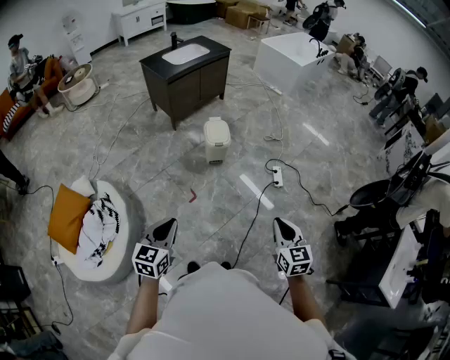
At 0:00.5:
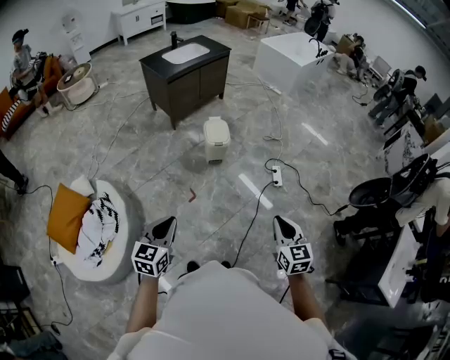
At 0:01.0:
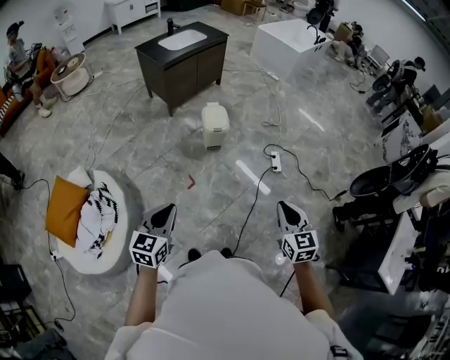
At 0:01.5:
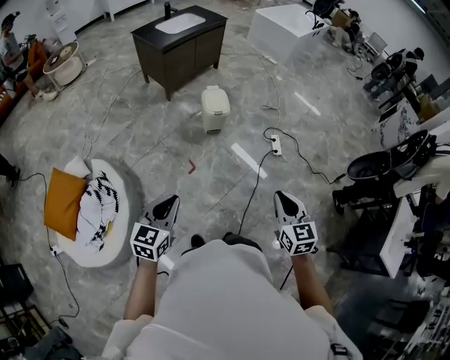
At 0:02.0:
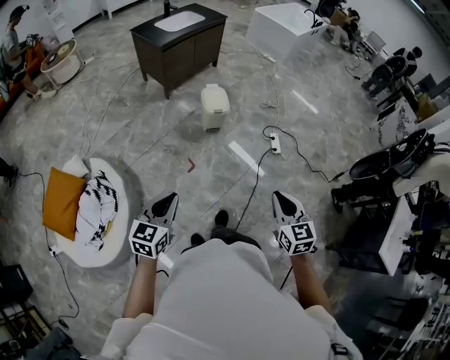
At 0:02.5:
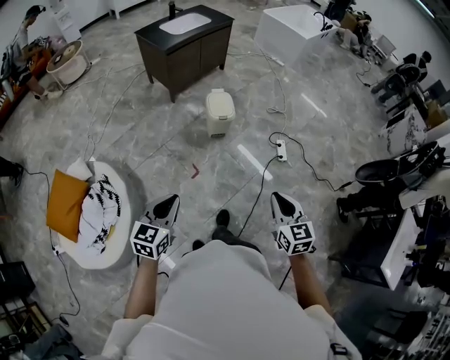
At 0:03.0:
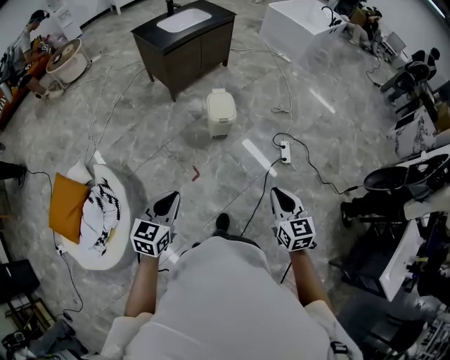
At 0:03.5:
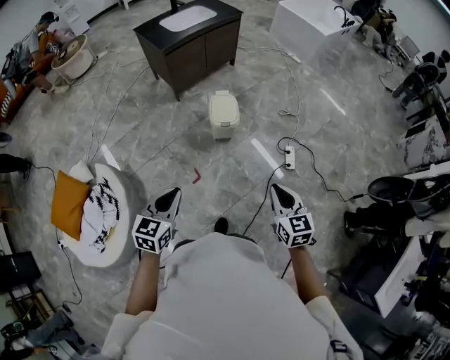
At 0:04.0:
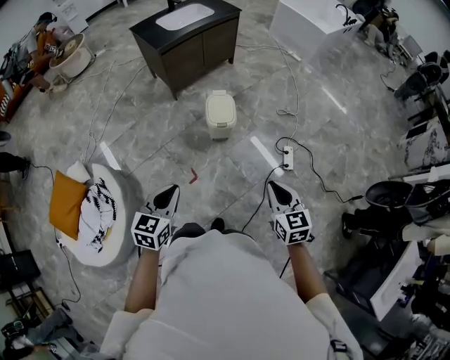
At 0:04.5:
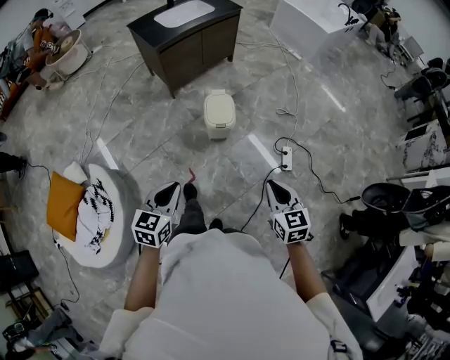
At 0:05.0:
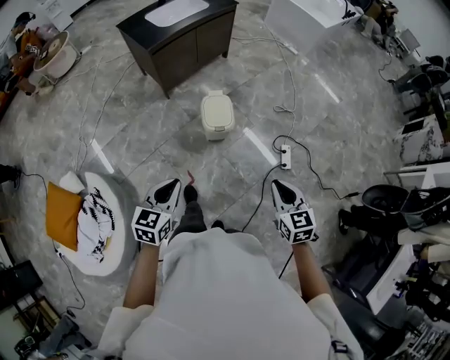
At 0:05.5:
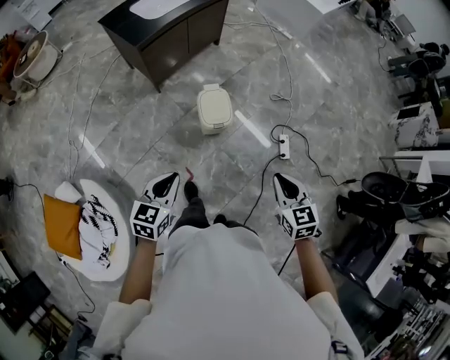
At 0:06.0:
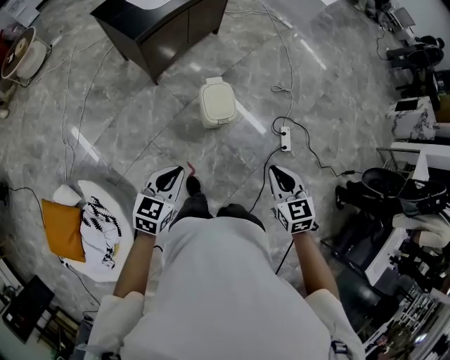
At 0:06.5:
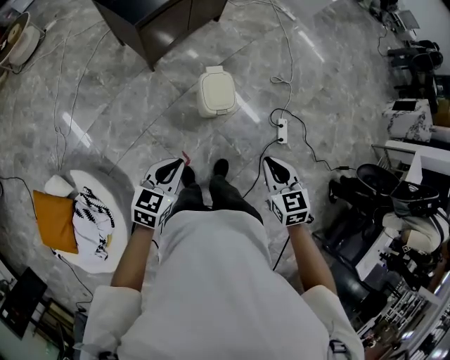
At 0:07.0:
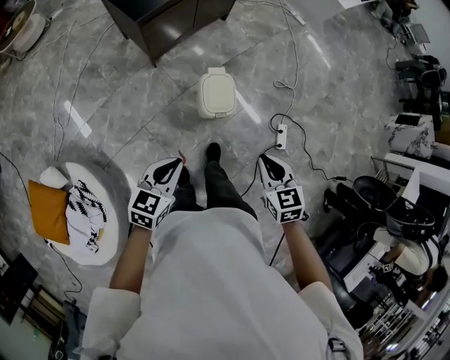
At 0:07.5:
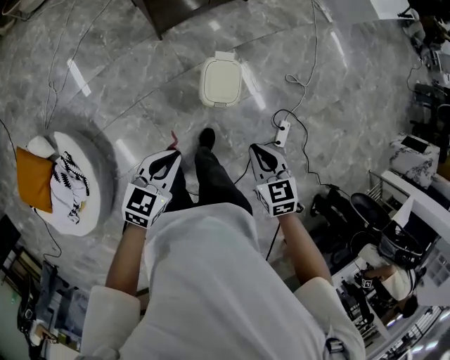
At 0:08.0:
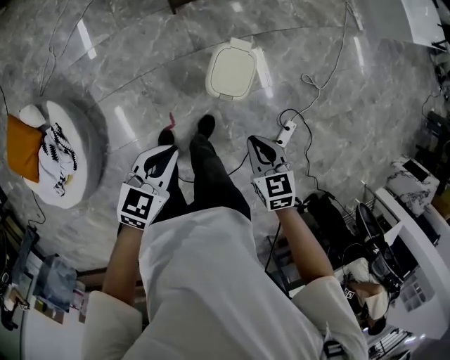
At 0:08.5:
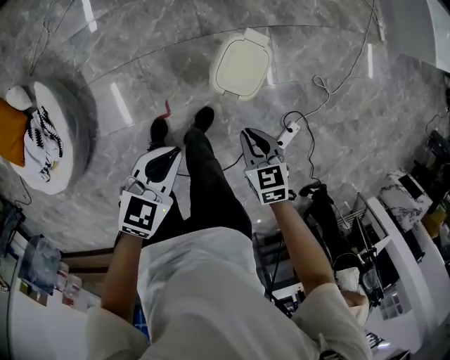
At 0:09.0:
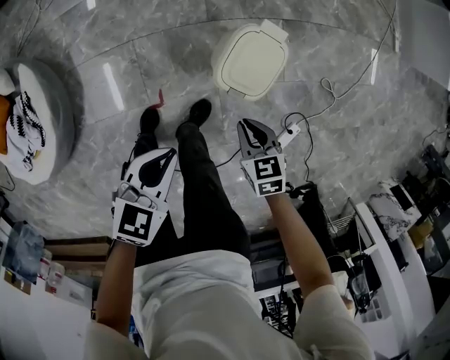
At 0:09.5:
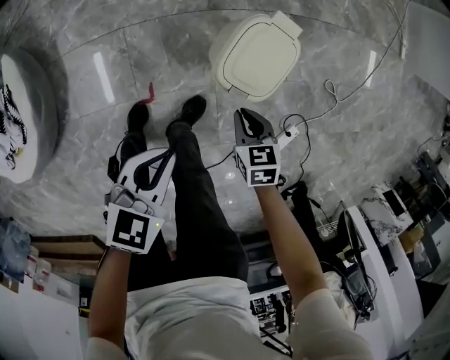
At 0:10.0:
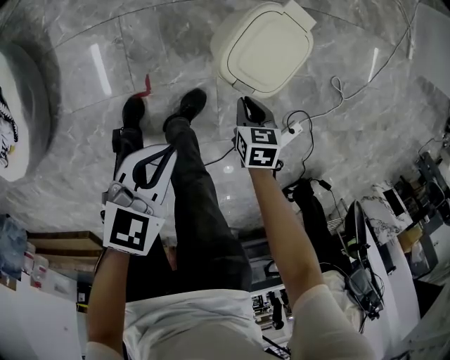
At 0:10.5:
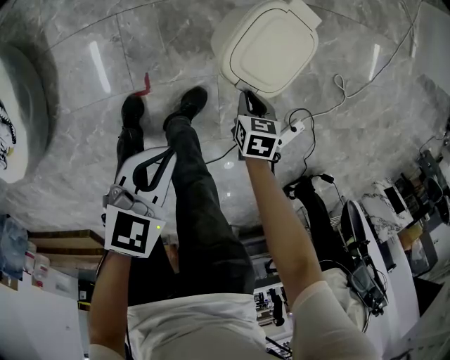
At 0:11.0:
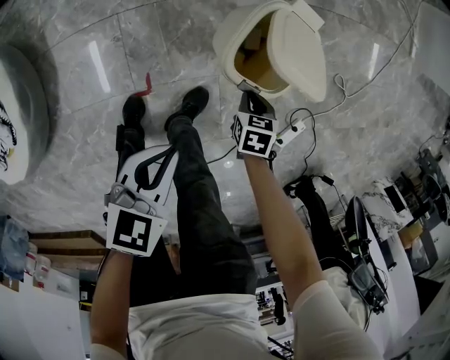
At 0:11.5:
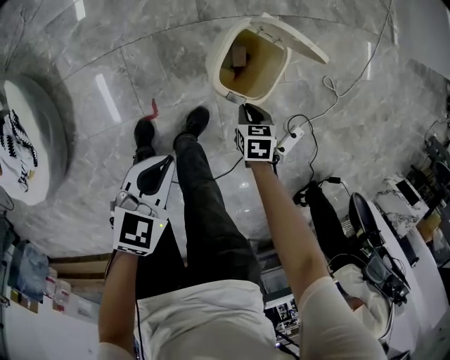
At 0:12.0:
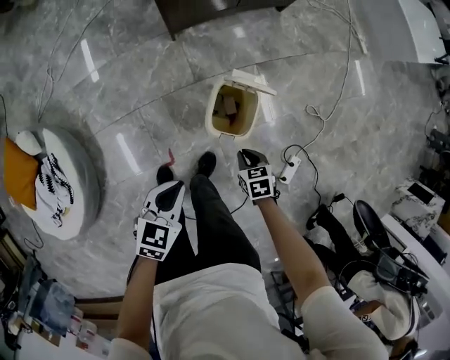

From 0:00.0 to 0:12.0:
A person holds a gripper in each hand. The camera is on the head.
From 0:00.0 to 0:02.0: Both grippers travel together to the left, roughly 5 cm.
From 0:02.0 to 0:04.0: The right gripper shifts roughly 25 cm forward. Meanwhile the left gripper heads forward and to the right, covering some 25 cm.
From 0:04.0 to 0:06.0: The grippers both shift forward and to the left by some 25 cm.
From 0:06.0 to 0:08.0: The left gripper changes place by some 15 cm. Meanwhile the right gripper shifts some 20 cm downward, and changes its angle by approximately 30 degrees.
From 0:08.0 to 0:10.0: The right gripper heads downward, covering some 35 cm, while the left gripper heads downward, covering some 25 cm.
From 0:10.0 to 0:12.0: The two grippers go about 10 cm upward.

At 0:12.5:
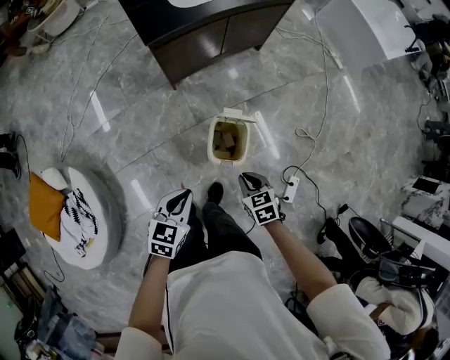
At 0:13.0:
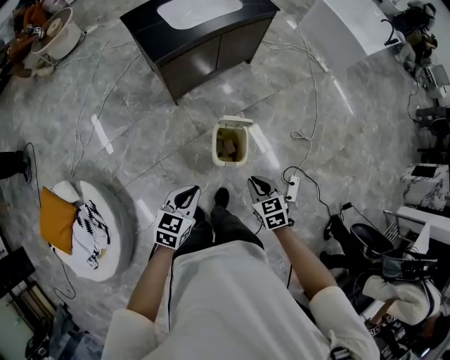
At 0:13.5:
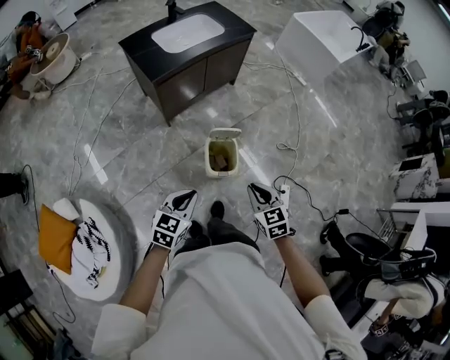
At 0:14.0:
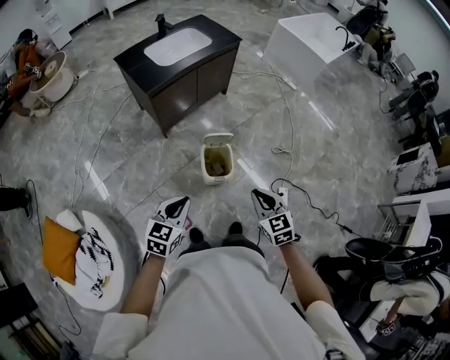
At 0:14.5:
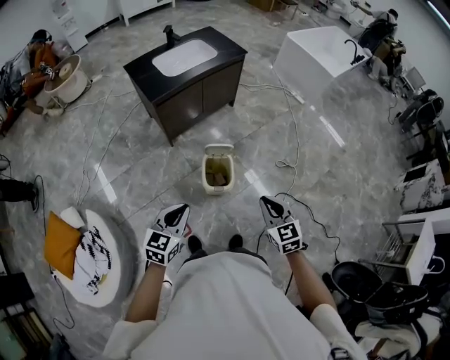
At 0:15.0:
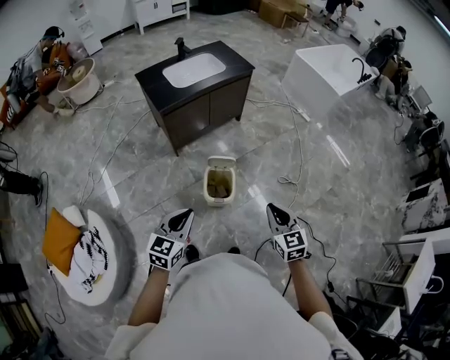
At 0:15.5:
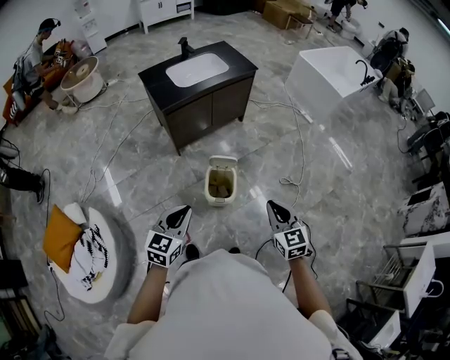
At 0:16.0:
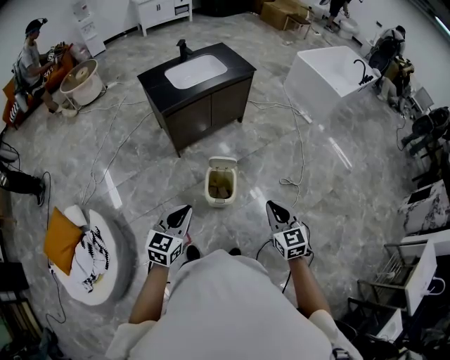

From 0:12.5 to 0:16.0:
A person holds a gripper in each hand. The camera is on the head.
From 0:12.5 to 0:14.5: The right gripper is displaced upward by about 25 cm, and swivels approximately 30 degrees, while the left gripper goes about 20 cm upward and backward.
From 0:14.5 to 0:16.0: There are only small adjustments of the grippers.

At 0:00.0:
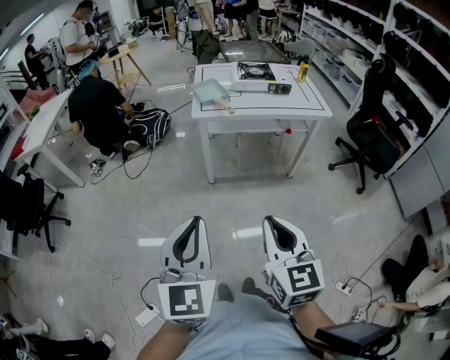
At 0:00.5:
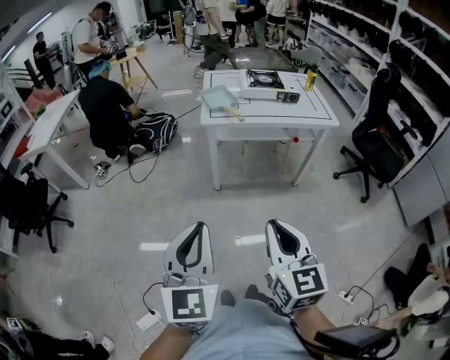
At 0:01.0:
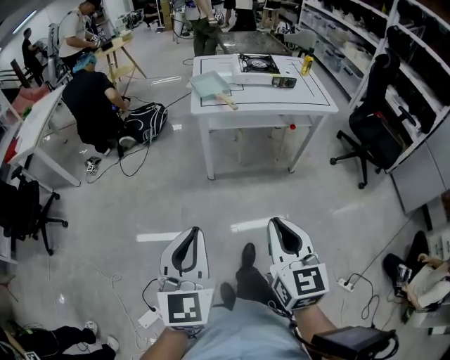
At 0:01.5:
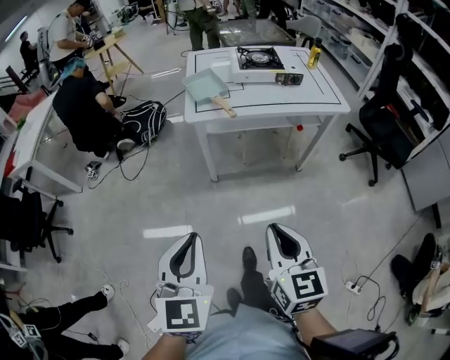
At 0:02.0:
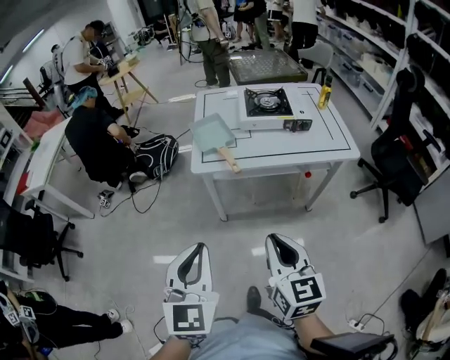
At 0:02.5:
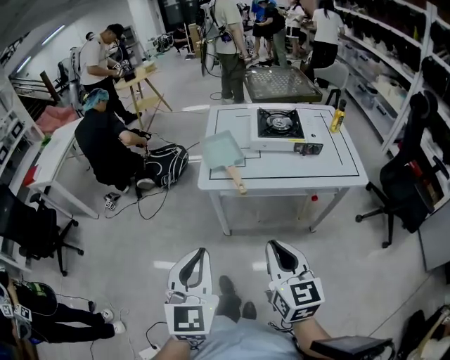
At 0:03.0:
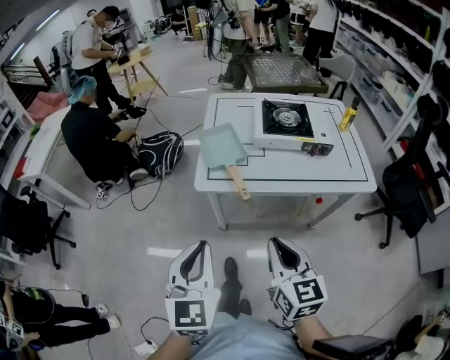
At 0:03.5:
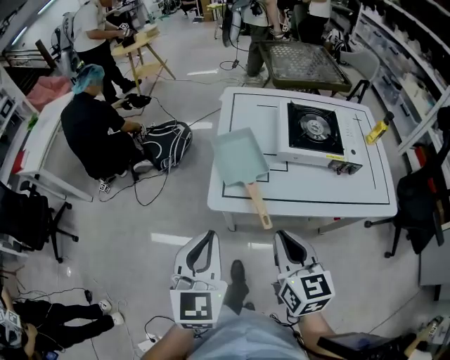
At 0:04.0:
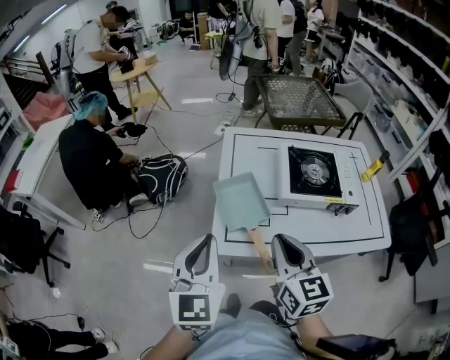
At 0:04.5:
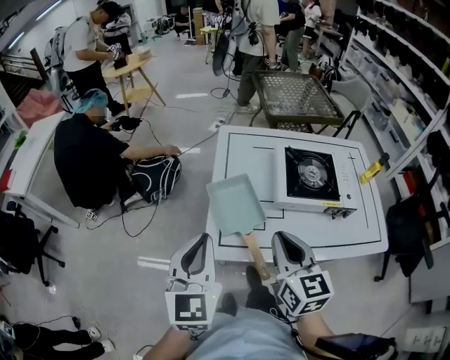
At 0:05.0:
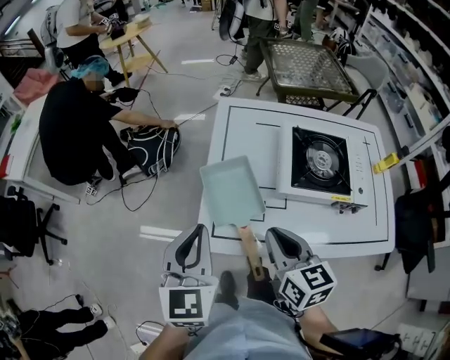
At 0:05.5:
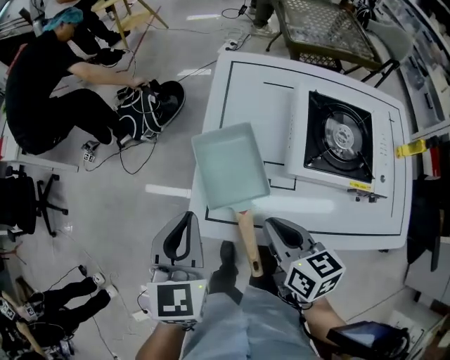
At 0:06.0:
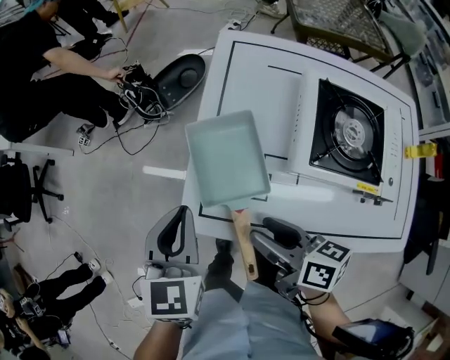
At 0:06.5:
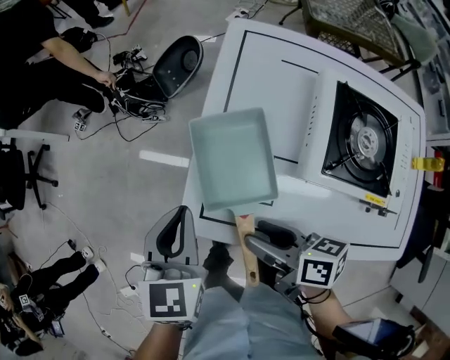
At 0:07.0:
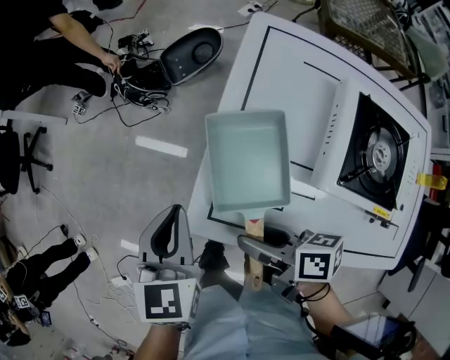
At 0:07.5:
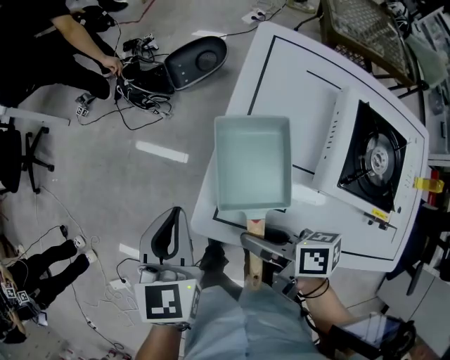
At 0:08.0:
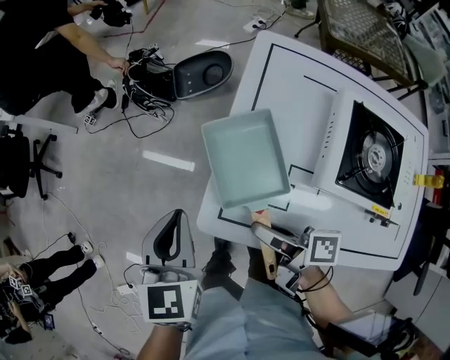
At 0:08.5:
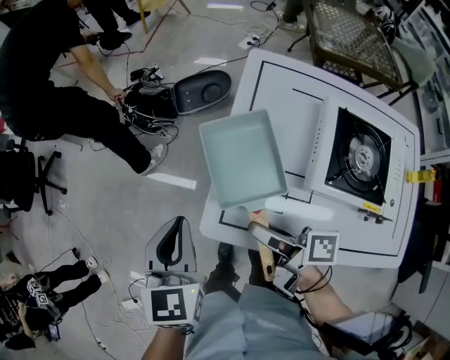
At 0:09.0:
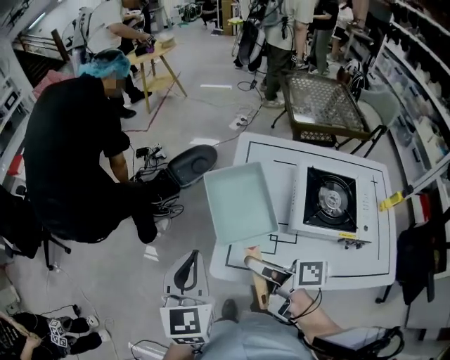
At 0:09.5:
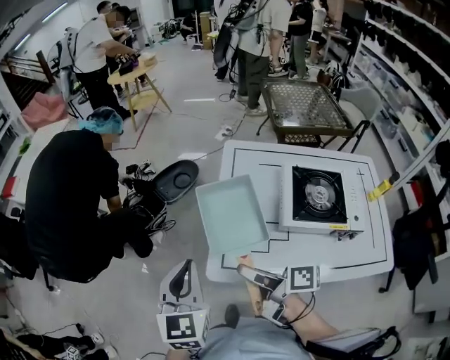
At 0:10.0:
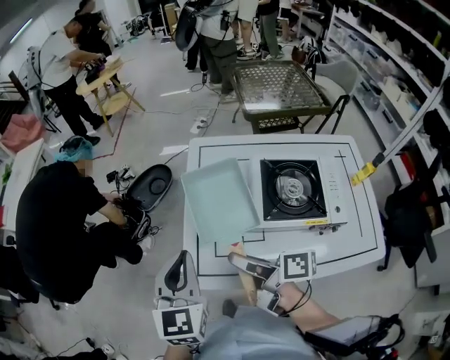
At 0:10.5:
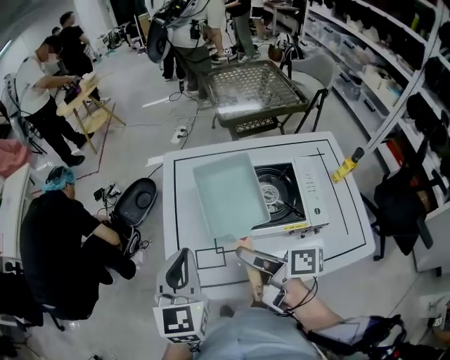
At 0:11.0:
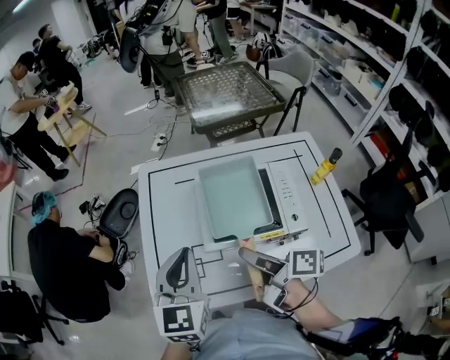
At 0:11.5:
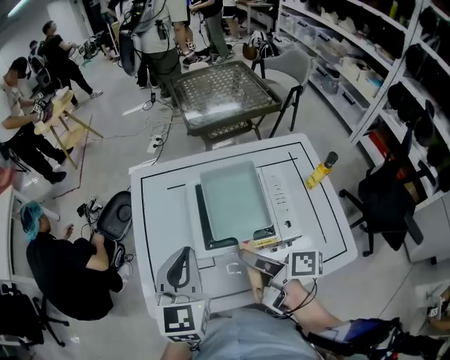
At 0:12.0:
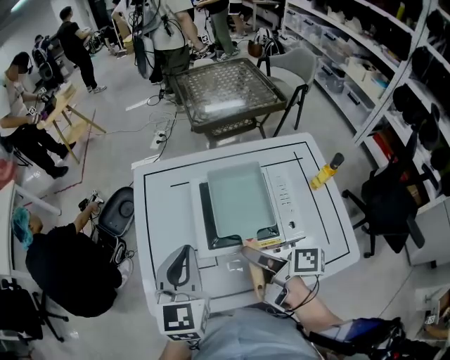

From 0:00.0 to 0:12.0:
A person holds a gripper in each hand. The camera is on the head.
From 0:00.0 to 0:02.0: The two grippers go some 35 cm forward.
From 0:02.0 to 0:04.0: The pair of grippers is taken forward, some 40 cm.
From 0:04.0 to 0:06.0: The grippers both shift downward by approximately 20 cm. The right gripper changes its angle by roughly 60 degrees, and opens, while the left gripper changes its angle by about 30 degrees.
From 0:06.0 to 0:08.0: The left gripper goes some 5 cm to the left; the right gripper shifts roughly 5 cm forward, and turns by about 30 degrees.
From 0:08.0 to 0:10.0: The left gripper travels upward and to the right by approximately 15 cm, and changes its angle by roughly 20 degrees. The right gripper travels upward by roughly 15 cm.
From 0:10.0 to 0:12.0: The grippers both shift to the right by about 25 cm.
